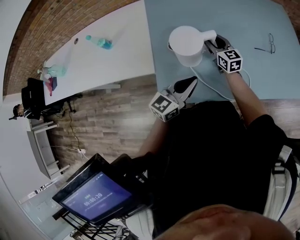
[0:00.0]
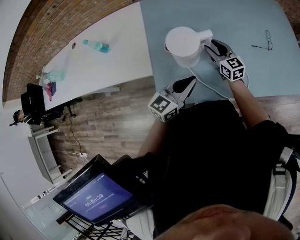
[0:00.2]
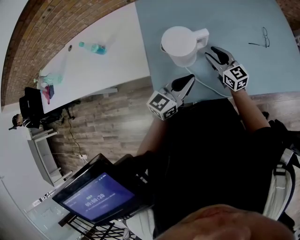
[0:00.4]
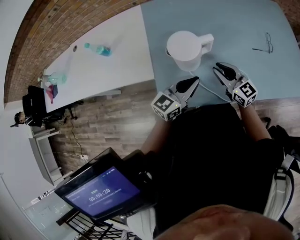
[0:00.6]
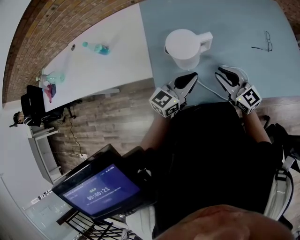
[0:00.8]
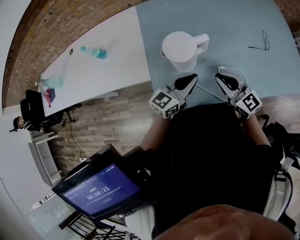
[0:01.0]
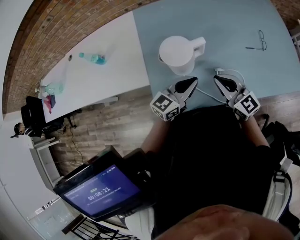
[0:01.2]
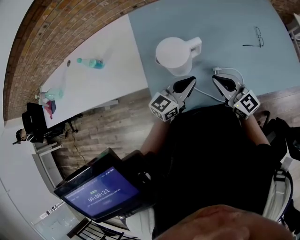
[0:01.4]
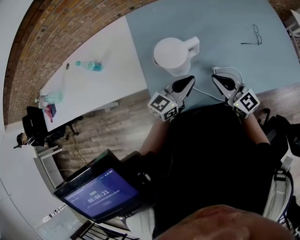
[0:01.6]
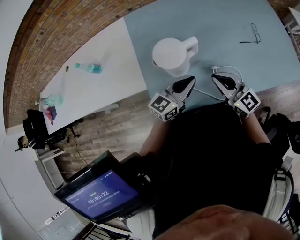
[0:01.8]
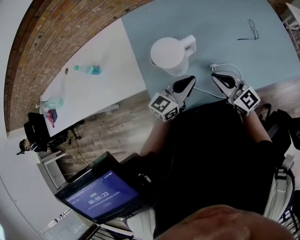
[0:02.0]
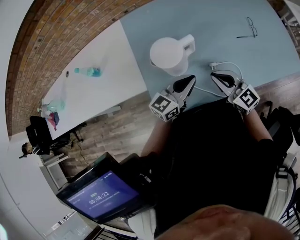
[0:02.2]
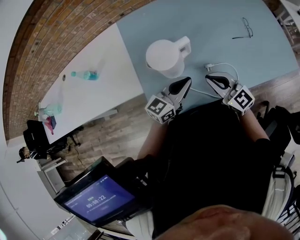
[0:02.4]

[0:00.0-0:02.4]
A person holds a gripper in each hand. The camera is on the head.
0:00.0 to 0:01.2: The right gripper heads backward and upward, covering roughly 20 cm, and closes its fingers.
0:01.2 to 0:02.4: The grippers make only small movements.

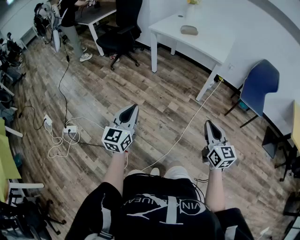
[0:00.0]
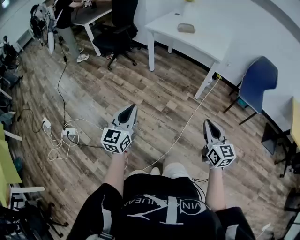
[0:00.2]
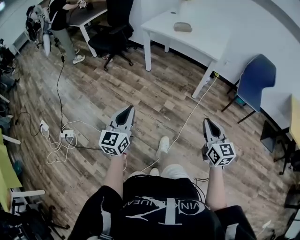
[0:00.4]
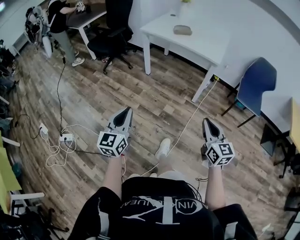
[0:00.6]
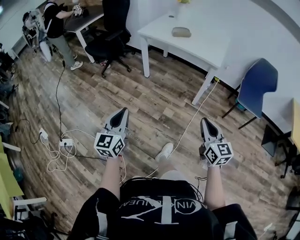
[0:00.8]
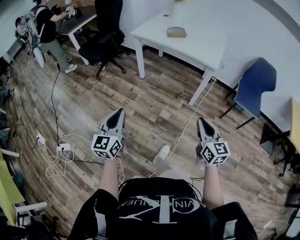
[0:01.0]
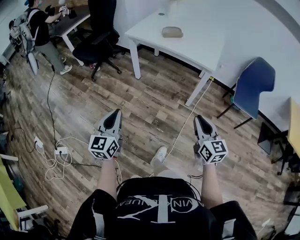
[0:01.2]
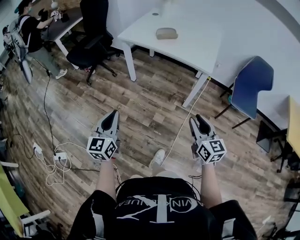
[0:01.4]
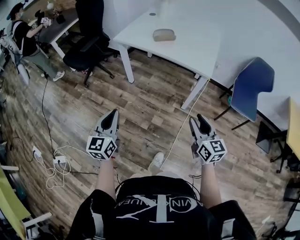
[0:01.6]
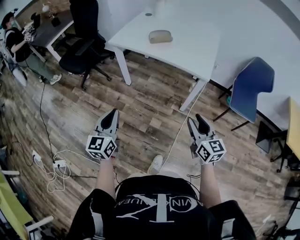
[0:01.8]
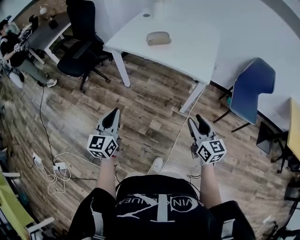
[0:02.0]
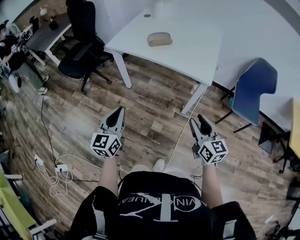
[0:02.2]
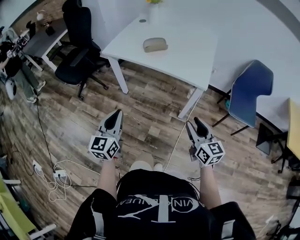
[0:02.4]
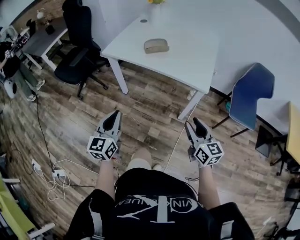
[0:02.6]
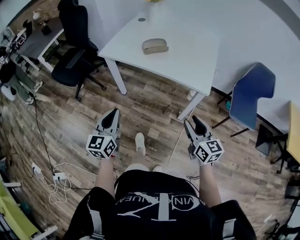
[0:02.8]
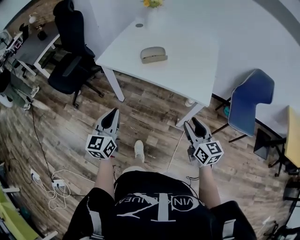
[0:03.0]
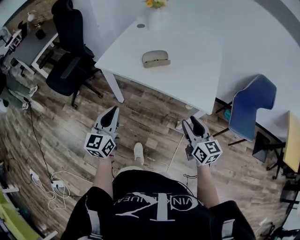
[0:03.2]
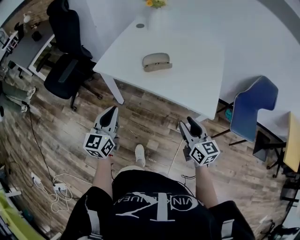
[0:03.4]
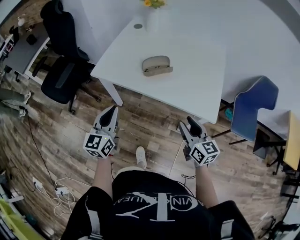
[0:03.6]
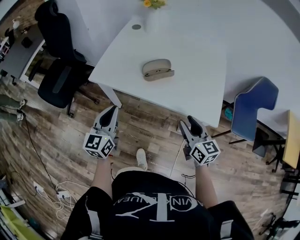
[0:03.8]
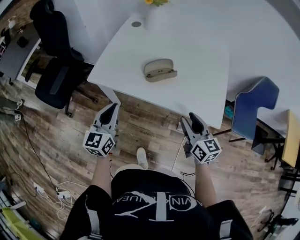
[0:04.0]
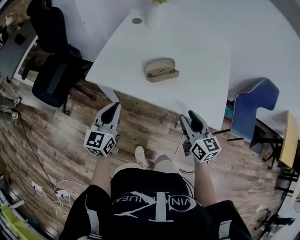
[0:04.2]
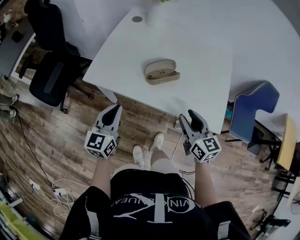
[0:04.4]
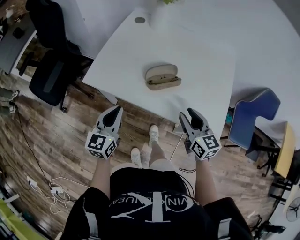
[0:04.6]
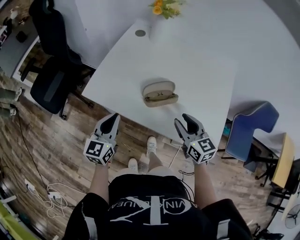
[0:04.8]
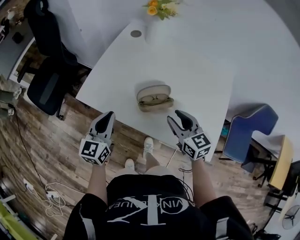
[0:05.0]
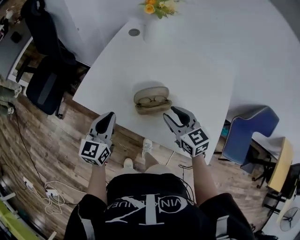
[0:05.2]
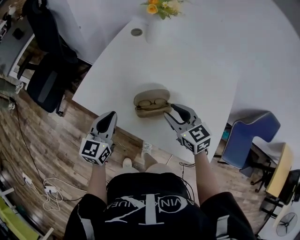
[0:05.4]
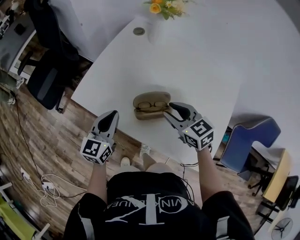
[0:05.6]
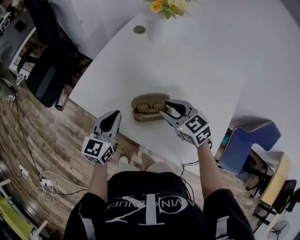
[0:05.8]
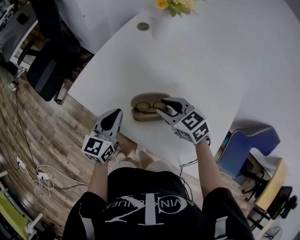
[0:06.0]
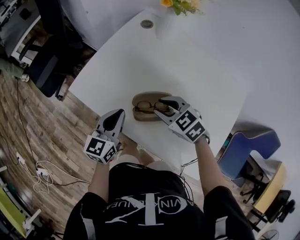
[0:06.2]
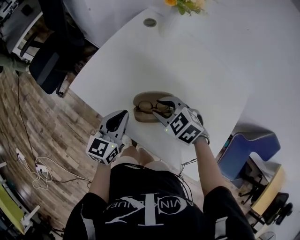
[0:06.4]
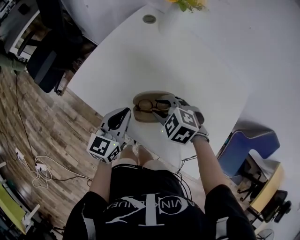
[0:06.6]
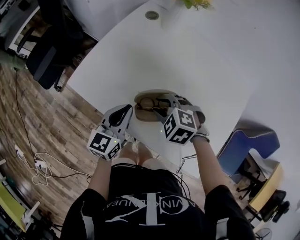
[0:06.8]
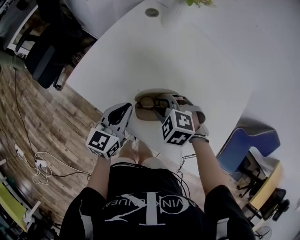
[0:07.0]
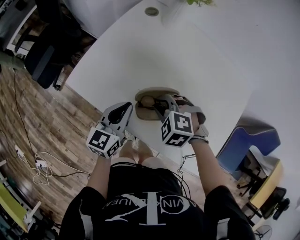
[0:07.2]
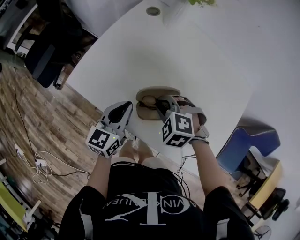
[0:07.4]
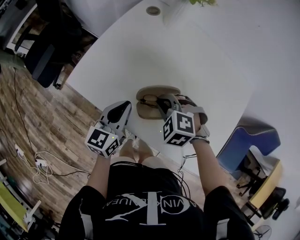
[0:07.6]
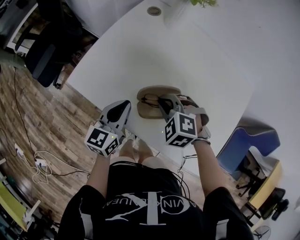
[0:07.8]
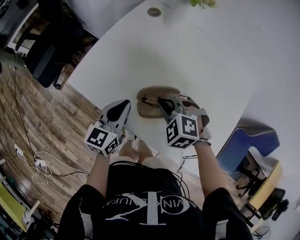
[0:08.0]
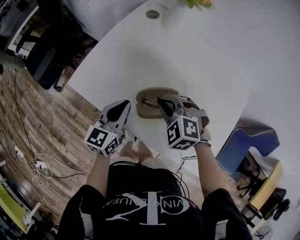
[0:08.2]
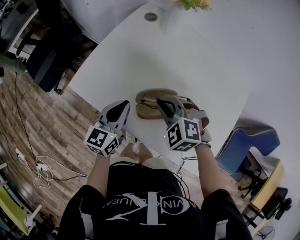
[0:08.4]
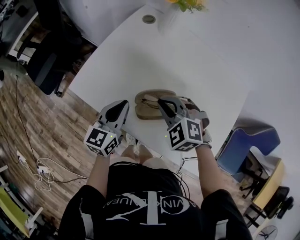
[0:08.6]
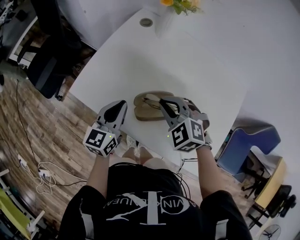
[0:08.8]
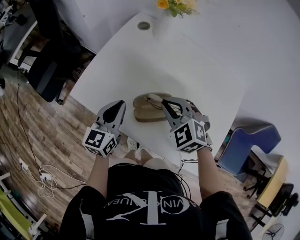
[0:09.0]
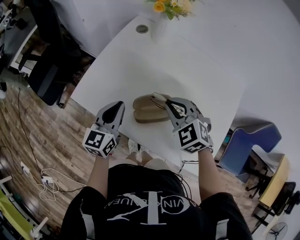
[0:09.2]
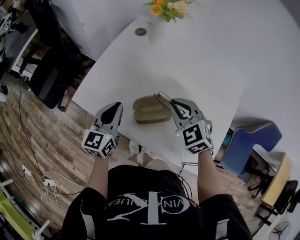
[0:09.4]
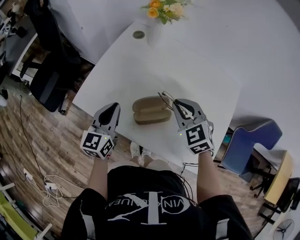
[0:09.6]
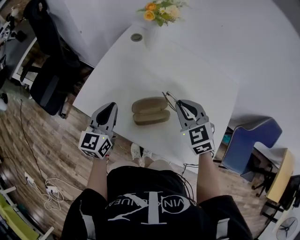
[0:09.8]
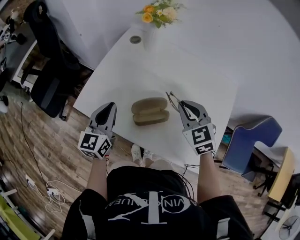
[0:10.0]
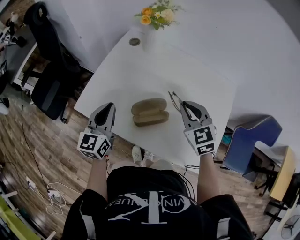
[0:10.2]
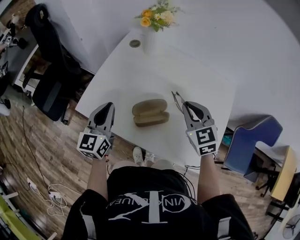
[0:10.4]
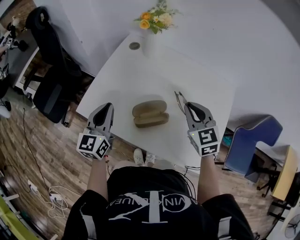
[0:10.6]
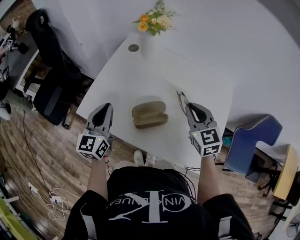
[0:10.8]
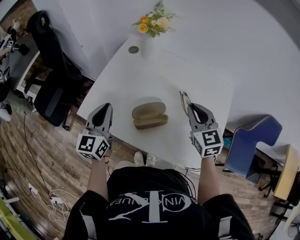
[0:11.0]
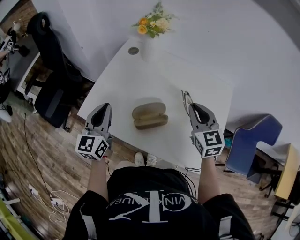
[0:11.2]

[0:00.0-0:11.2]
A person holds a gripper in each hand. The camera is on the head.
0:00.0 to 0:01.6: Both grippers travel together forward, about 30 cm. The right gripper opens up.
0:01.6 to 0:03.2: The grippers both shift forward by some 30 cm.
0:03.2 to 0:04.8: Both grippers move forward, approximately 25 cm.
0:04.8 to 0:06.4: The right gripper travels forward and downward by some 15 cm, and points its fingers approximately 30 degrees further downward. Meanwhile the left gripper goes approximately 10 cm to the right and forward.
0:06.4 to 0:08.0: The right gripper swivels roughly 20 degrees, and closes its fingers.
0:08.0 to 0:09.6: The right gripper goes approximately 15 cm upward and to the right, and changes its angle by about 40 degrees. The left gripper is displaced upward by roughly 5 cm.
0:09.6 to 0:11.2: The left gripper shifts some 5 cm upward, while the right gripper heads to the right and upward, covering approximately 10 cm, and changes its angle by roughly 30 degrees.

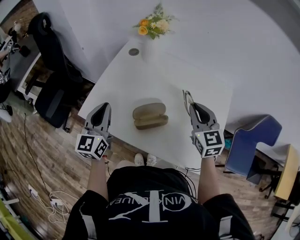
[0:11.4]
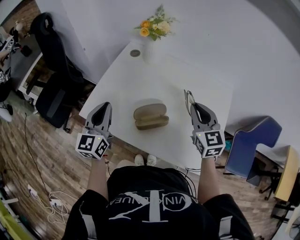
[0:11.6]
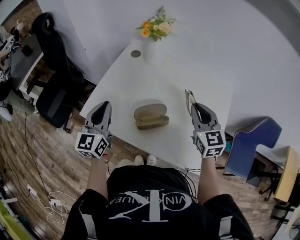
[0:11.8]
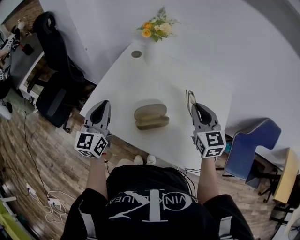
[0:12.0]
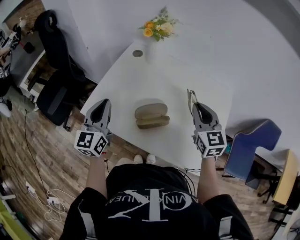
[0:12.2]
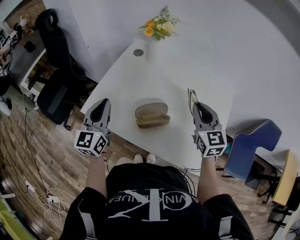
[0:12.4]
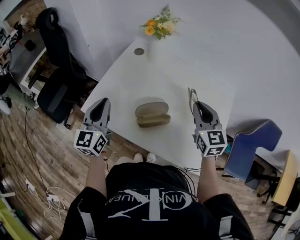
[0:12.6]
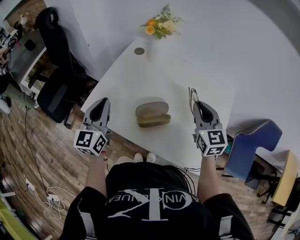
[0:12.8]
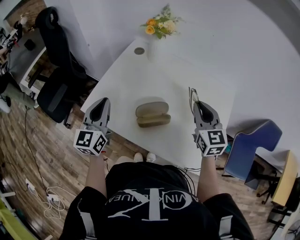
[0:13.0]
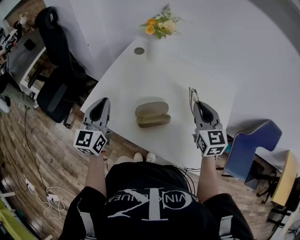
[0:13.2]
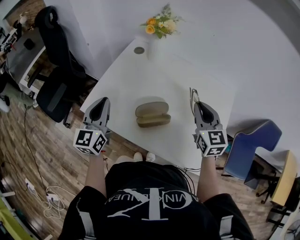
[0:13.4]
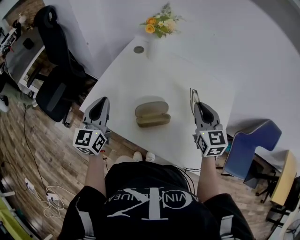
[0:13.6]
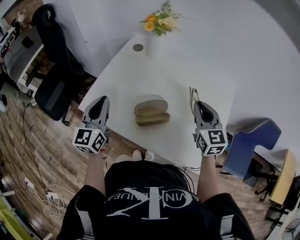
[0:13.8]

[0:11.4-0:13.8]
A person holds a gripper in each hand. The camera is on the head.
0:11.4 to 0:13.8: The grippers move only a little.

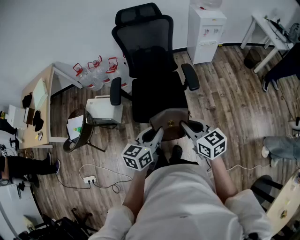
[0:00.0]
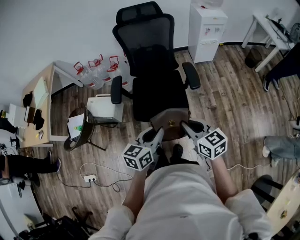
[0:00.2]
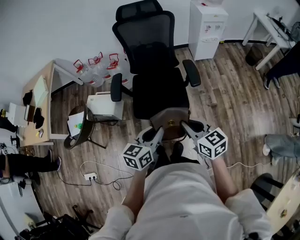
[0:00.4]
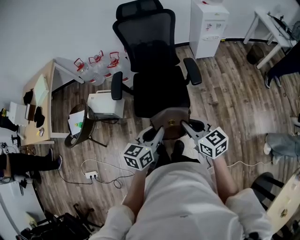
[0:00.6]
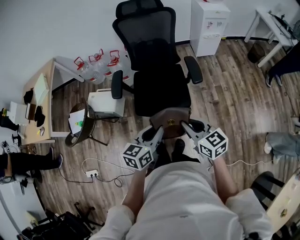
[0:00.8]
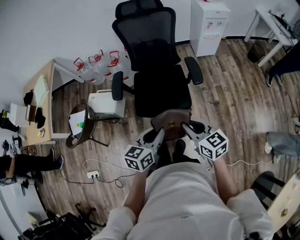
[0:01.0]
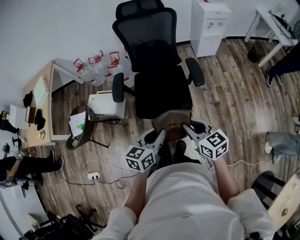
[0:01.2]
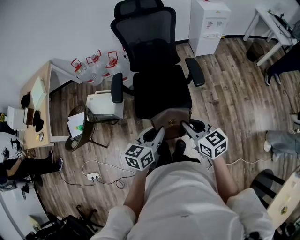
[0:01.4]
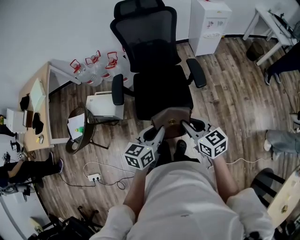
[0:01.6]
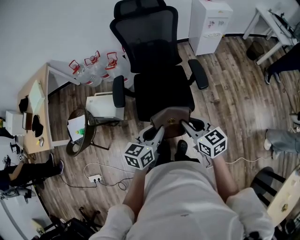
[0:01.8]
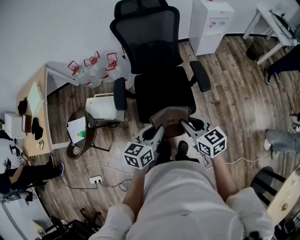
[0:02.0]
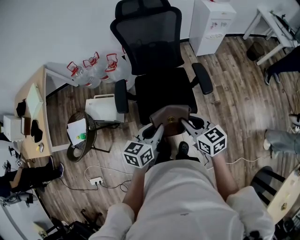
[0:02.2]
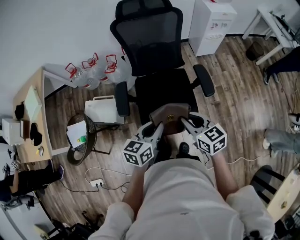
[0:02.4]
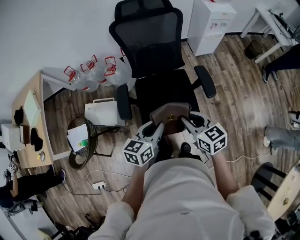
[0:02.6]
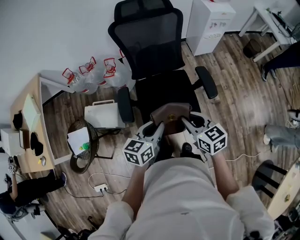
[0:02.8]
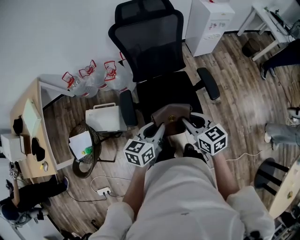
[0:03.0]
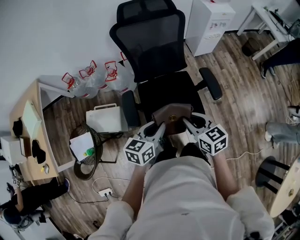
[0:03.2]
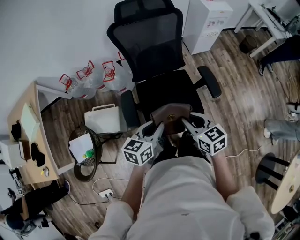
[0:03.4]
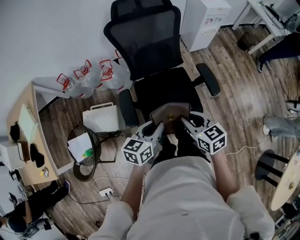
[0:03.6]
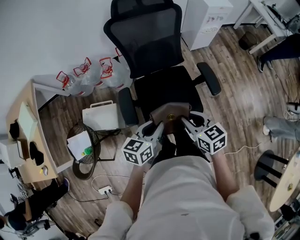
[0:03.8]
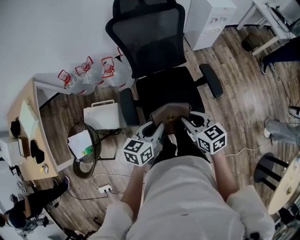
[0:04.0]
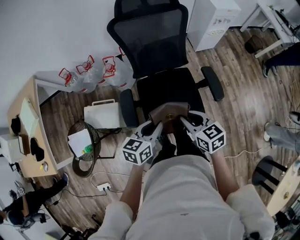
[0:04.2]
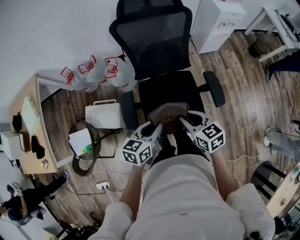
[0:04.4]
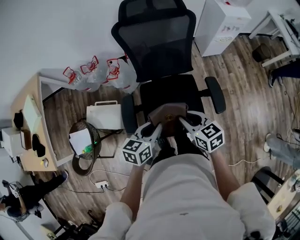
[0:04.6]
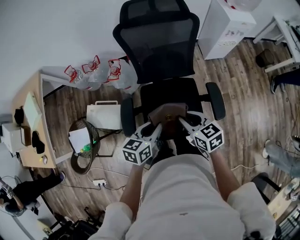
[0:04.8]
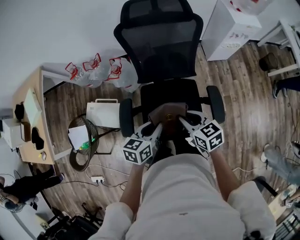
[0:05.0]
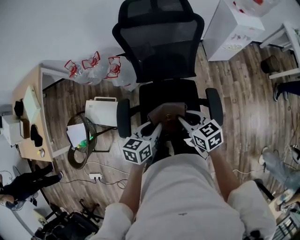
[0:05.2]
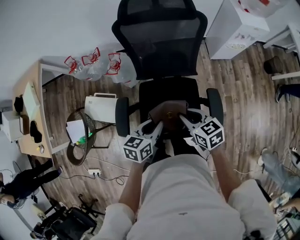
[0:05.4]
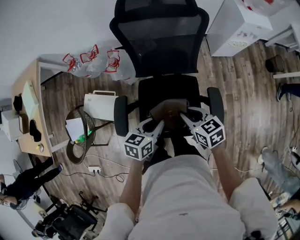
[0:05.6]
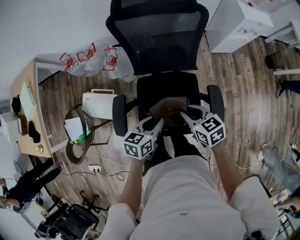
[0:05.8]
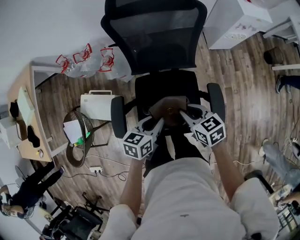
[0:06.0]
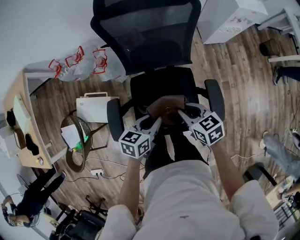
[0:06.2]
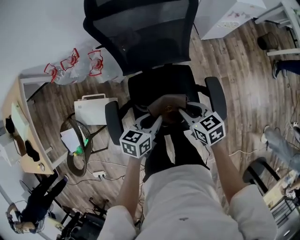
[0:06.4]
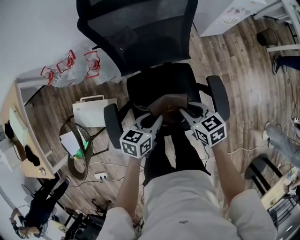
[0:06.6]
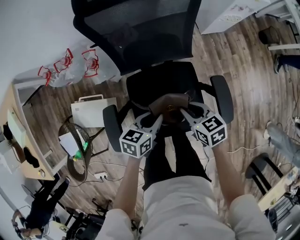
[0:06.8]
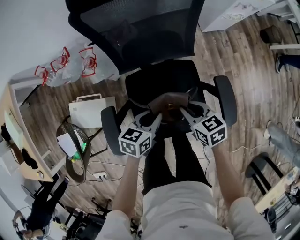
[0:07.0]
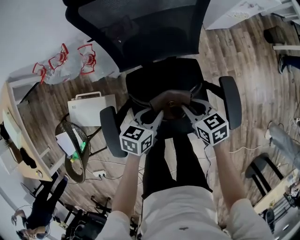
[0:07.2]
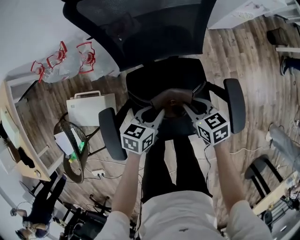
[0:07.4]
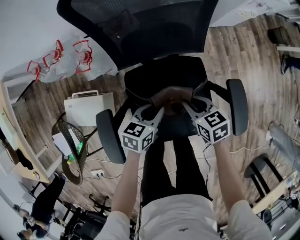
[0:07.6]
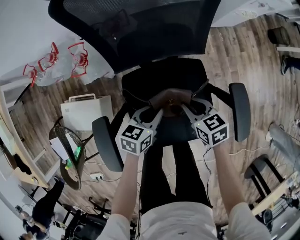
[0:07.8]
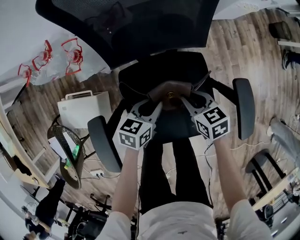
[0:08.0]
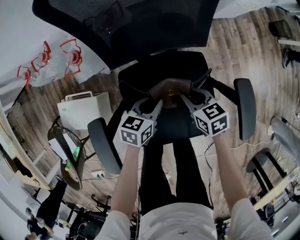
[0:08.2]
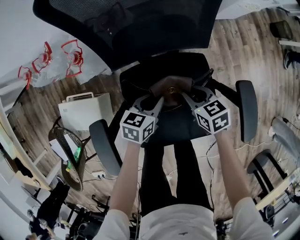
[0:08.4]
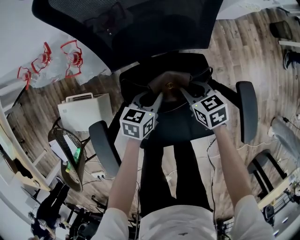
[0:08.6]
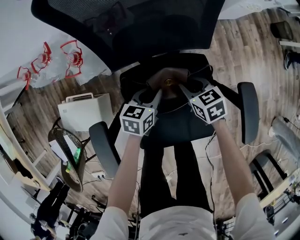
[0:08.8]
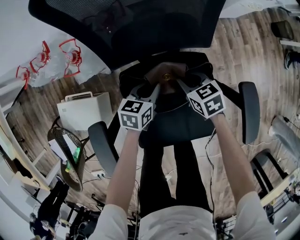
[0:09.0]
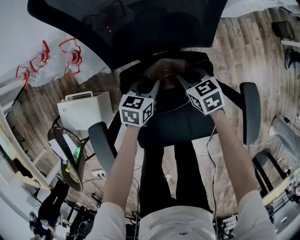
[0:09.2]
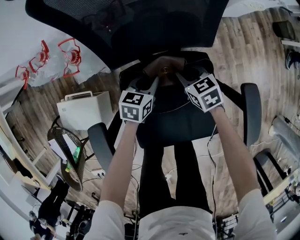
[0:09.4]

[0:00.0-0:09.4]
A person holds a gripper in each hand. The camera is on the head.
0:00.0 to 0:01.6: The right gripper changes place by roughly 5 cm. The left gripper ends up about 5 cm from where it was.
0:01.6 to 0:03.2: Both grippers travel together forward and to the left, about 20 cm.
0:03.2 to 0:04.8: The two grippers go roughly 10 cm forward.
0:04.8 to 0:06.2: The right gripper heads downward and forward, covering roughly 10 cm. Meanwhile the left gripper heads downward, forward and to the right, covering approximately 10 cm.
0:06.2 to 0:07.8: The grippers both shift downward by approximately 20 cm.
0:07.8 to 0:09.4: The grippers both shift forward and downward by about 15 cm.
